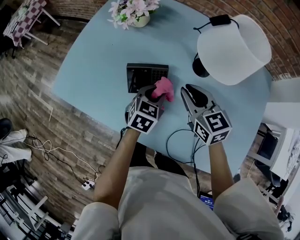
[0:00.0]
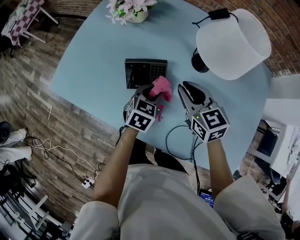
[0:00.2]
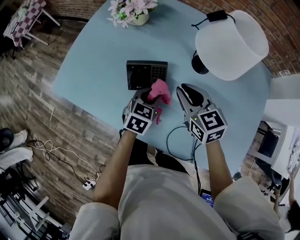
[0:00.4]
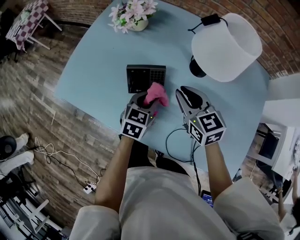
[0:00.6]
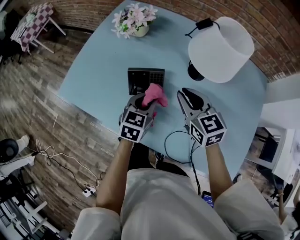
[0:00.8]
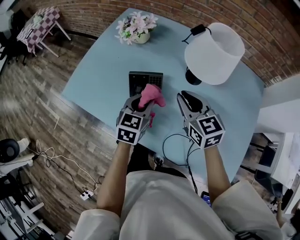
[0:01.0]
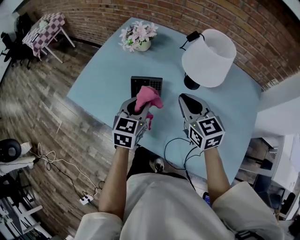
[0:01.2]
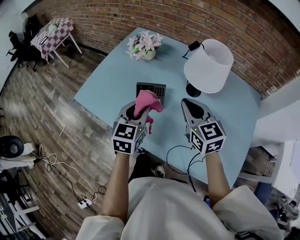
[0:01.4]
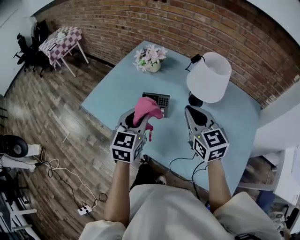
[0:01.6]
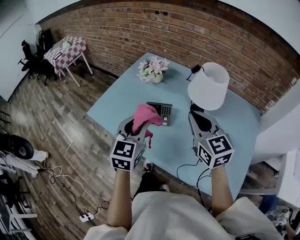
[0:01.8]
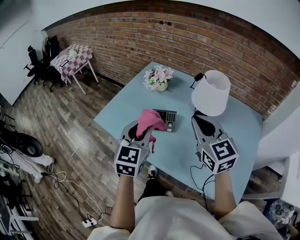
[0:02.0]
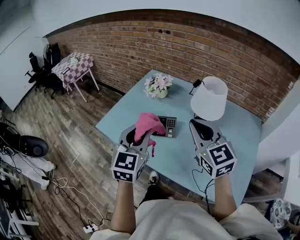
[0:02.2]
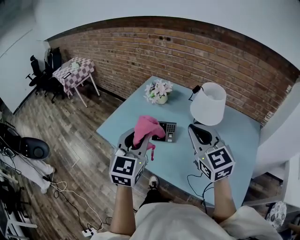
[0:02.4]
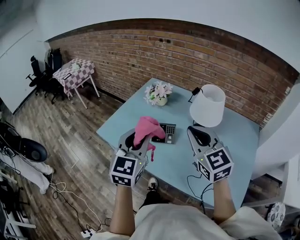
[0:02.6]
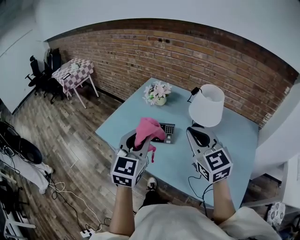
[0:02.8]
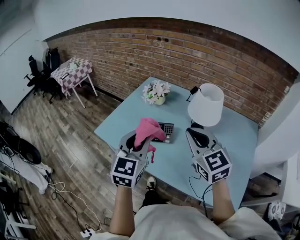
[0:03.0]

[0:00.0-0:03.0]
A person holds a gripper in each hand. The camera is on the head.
0:00.0 to 0:01.6: The two grippers go approximately 20 cm upward and backward. The left gripper changes its angle by approximately 30 degrees.
0:01.6 to 0:03.0: Both grippers move upward and backward, approximately 10 cm.

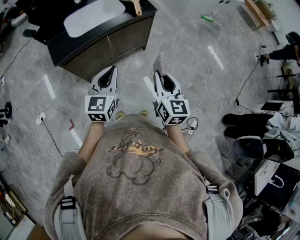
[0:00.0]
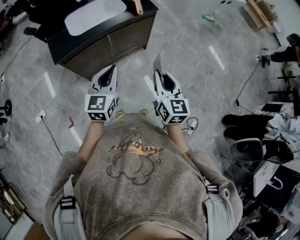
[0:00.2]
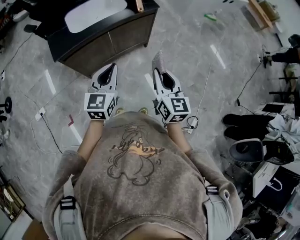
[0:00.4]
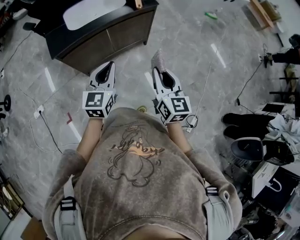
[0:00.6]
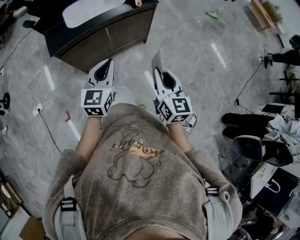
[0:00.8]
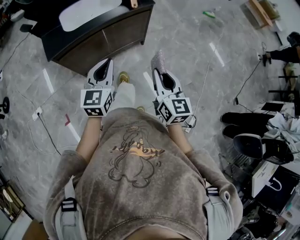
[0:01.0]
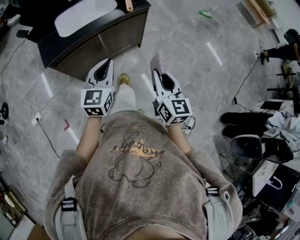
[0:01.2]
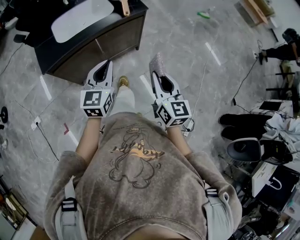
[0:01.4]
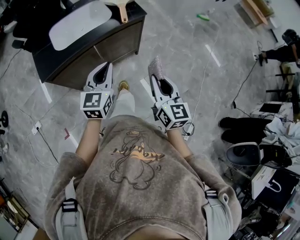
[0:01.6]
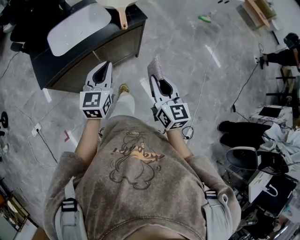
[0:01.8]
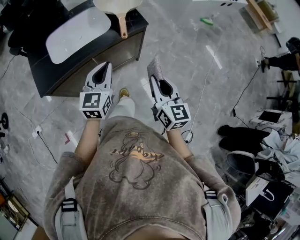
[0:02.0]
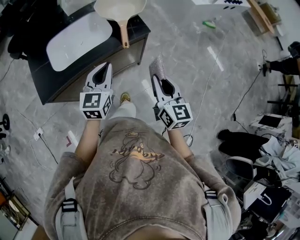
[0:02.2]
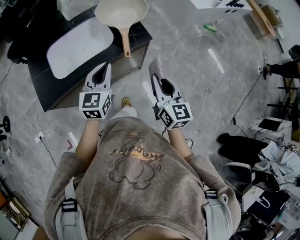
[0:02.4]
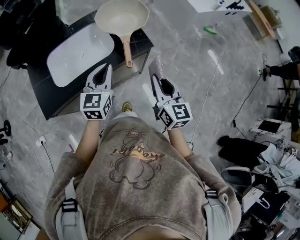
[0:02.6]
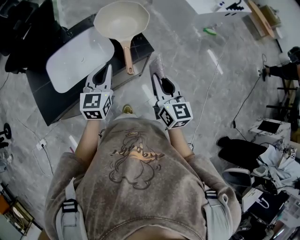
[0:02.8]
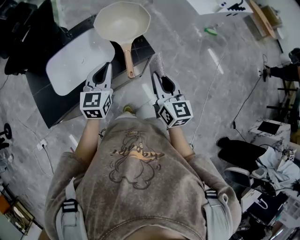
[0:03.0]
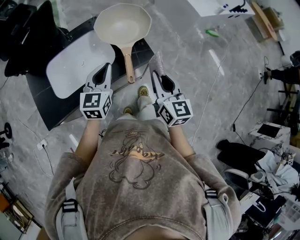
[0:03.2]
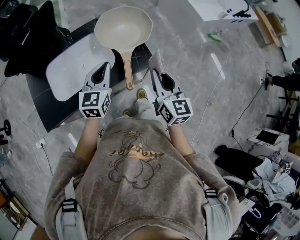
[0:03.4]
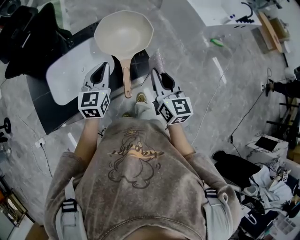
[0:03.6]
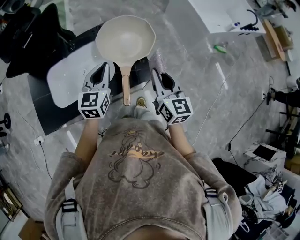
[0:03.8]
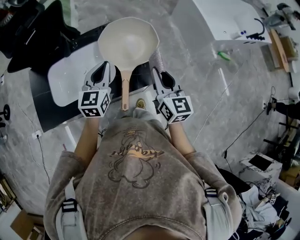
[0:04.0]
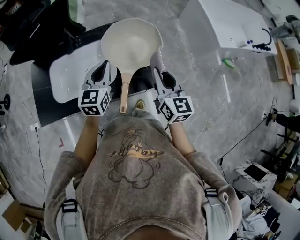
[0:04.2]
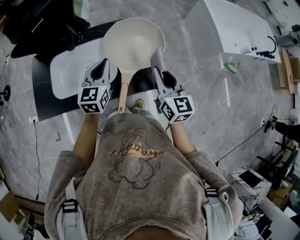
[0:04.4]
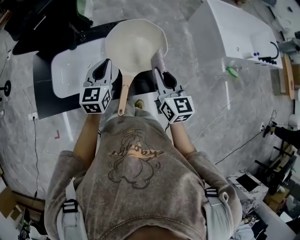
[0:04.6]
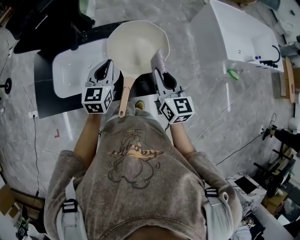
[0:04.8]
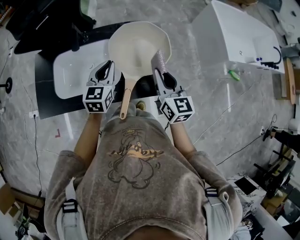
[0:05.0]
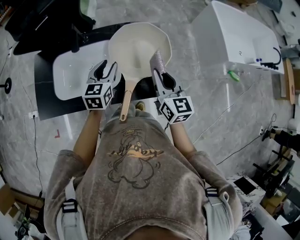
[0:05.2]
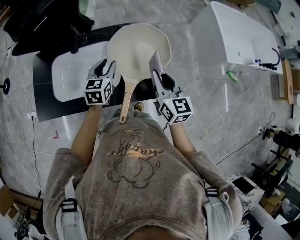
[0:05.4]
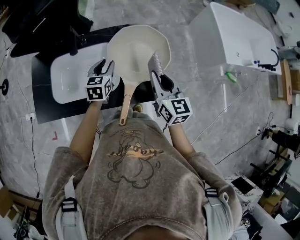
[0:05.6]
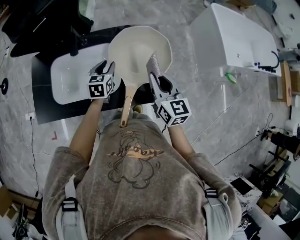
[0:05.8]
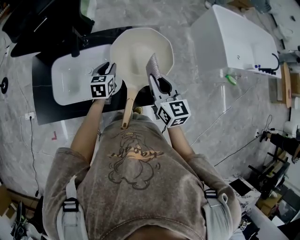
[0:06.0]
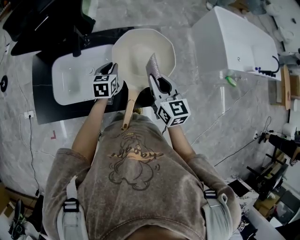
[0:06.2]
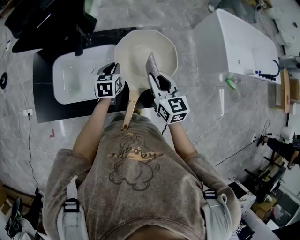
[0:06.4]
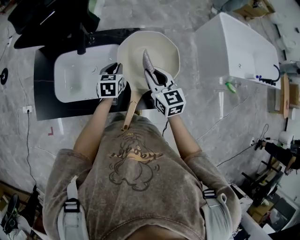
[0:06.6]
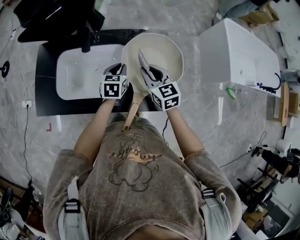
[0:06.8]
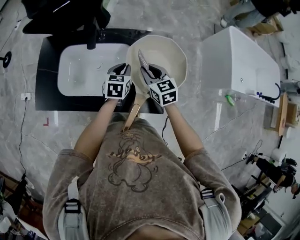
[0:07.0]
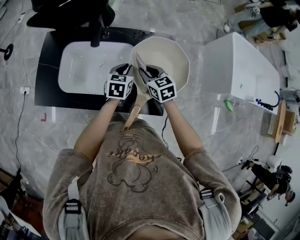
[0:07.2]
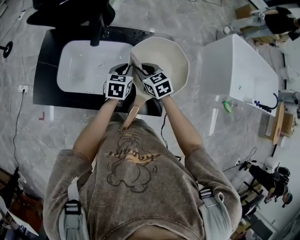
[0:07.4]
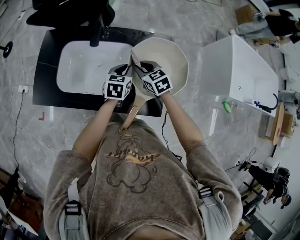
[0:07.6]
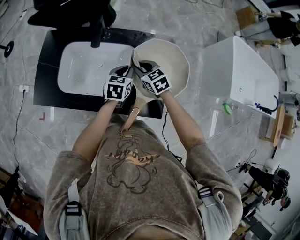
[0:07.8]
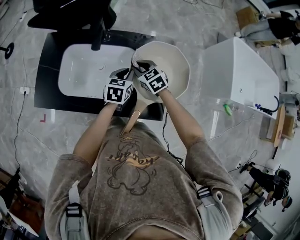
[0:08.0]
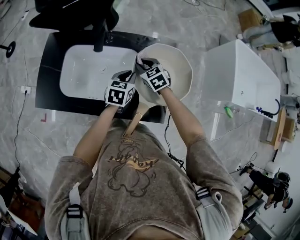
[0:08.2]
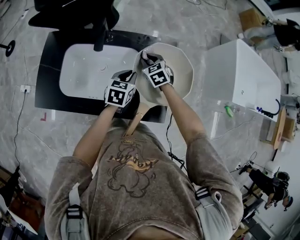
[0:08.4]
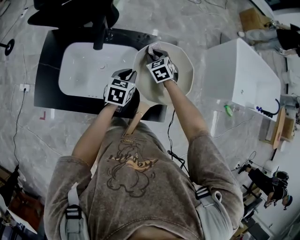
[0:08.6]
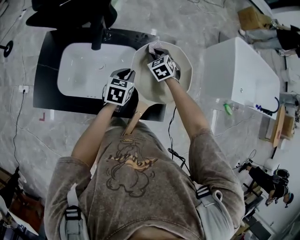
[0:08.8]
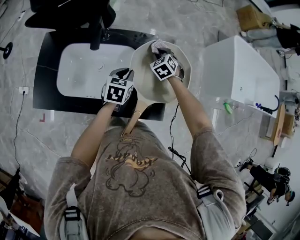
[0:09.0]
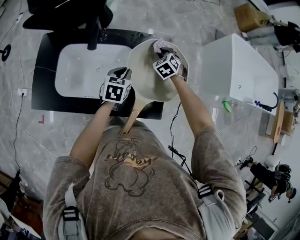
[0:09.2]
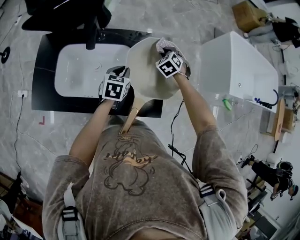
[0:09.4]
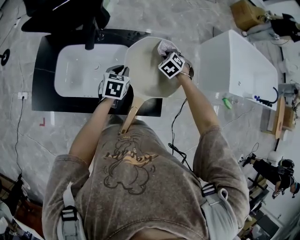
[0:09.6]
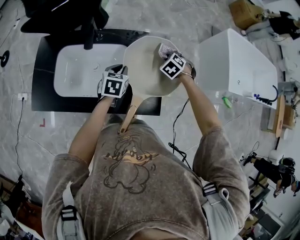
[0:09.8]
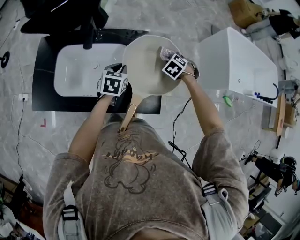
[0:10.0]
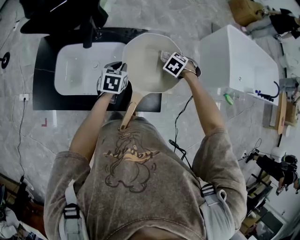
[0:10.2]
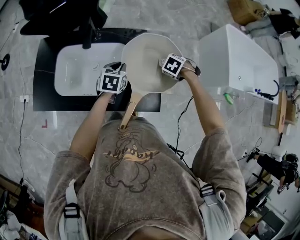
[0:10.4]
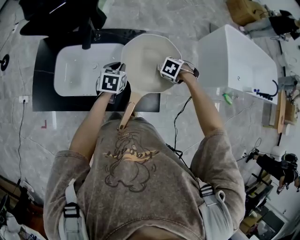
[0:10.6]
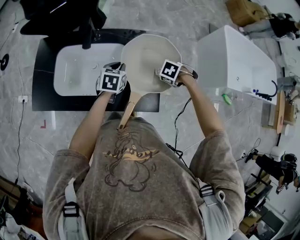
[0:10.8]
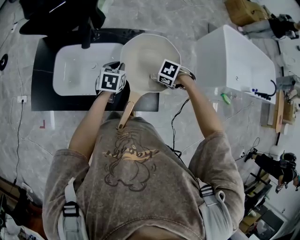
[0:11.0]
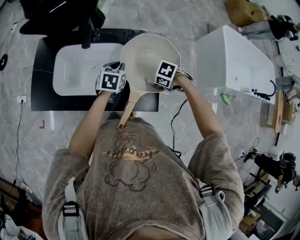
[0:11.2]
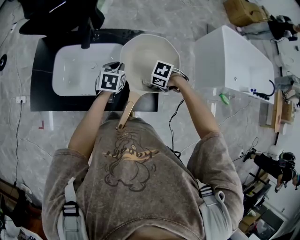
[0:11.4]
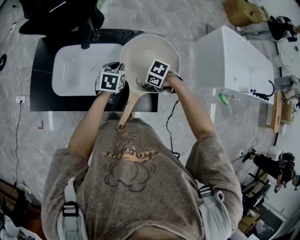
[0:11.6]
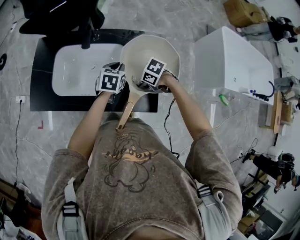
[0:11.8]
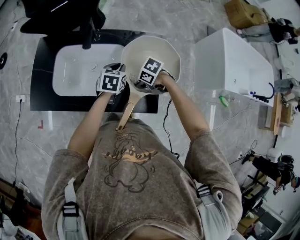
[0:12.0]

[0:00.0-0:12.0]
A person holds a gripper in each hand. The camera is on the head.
0:00.0 to 0:01.6: The right gripper goes some 5 cm forward. The left gripper moves forward, about 10 cm.
0:01.6 to 0:03.0: The grippers both shift forward by approximately 30 cm.
0:03.0 to 0:04.4: The two grippers go roughly 20 cm forward. The right gripper changes its angle by roughly 20 degrees; the left gripper rotates about 20 degrees.
0:04.4 to 0:06.0: The left gripper is displaced downward and forward by some 15 cm, turns by approximately 20 degrees, and opens. Meanwhile the right gripper travels forward by approximately 5 cm.
0:06.0 to 0:07.6: The right gripper goes approximately 20 cm downward, forward and to the left, and rotates some 50 degrees.
0:07.6 to 0:09.0: The right gripper shifts about 15 cm forward and to the right, and swivels about 30 degrees.
0:09.0 to 0:10.4: The right gripper shifts by some 15 cm, and points its fingers approximately 40 degrees further downward.
0:10.4 to 0:12.0: The right gripper changes place by about 15 cm, and swivels about 30 degrees.

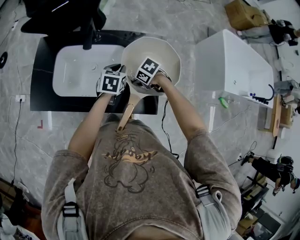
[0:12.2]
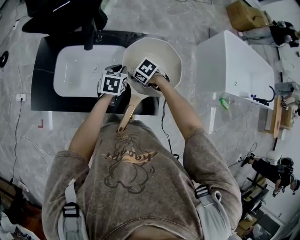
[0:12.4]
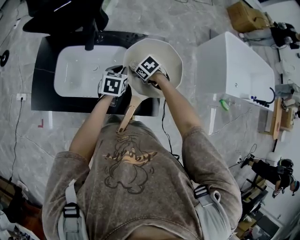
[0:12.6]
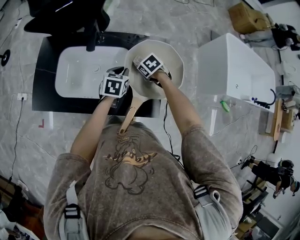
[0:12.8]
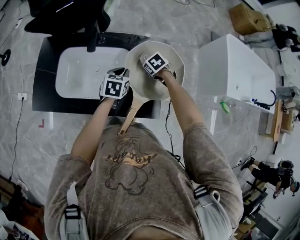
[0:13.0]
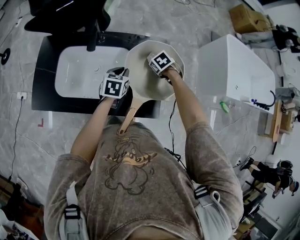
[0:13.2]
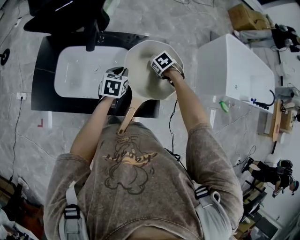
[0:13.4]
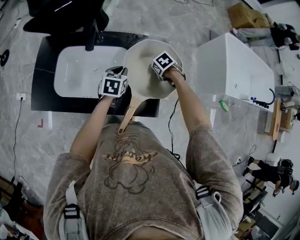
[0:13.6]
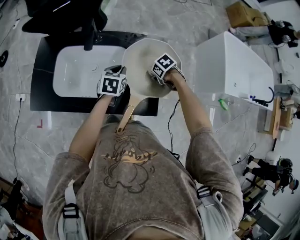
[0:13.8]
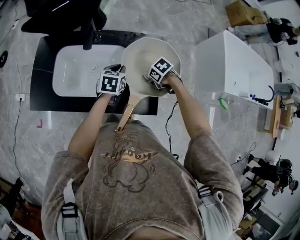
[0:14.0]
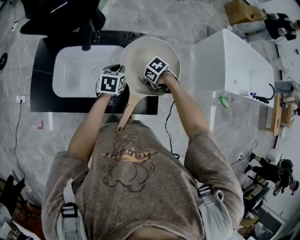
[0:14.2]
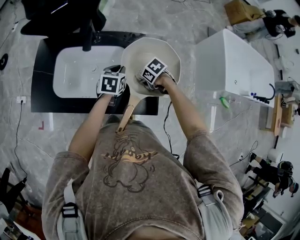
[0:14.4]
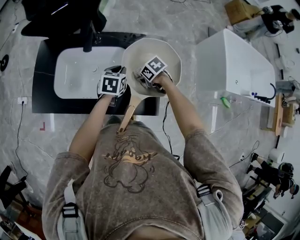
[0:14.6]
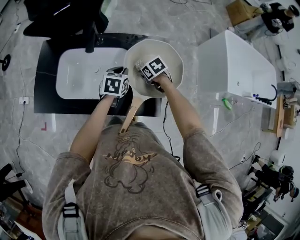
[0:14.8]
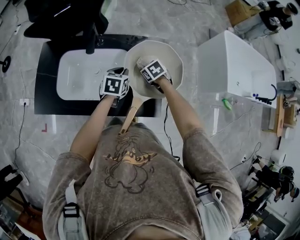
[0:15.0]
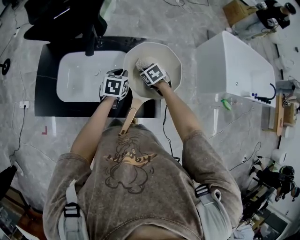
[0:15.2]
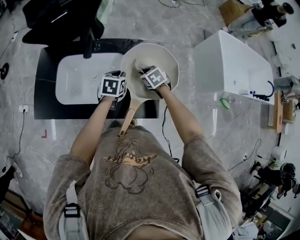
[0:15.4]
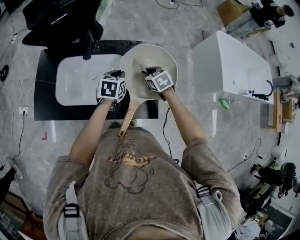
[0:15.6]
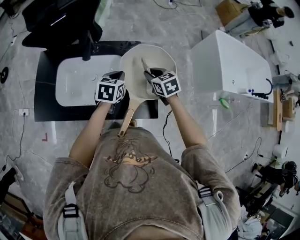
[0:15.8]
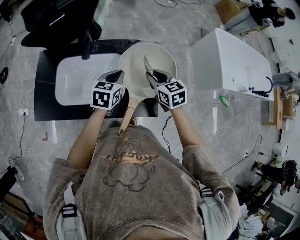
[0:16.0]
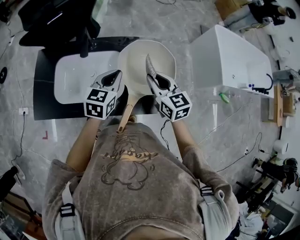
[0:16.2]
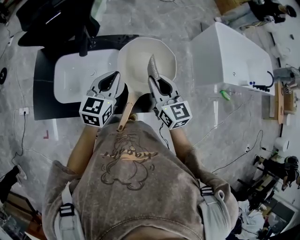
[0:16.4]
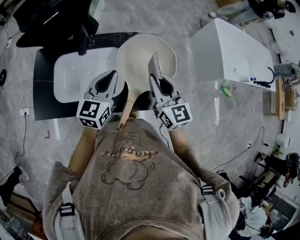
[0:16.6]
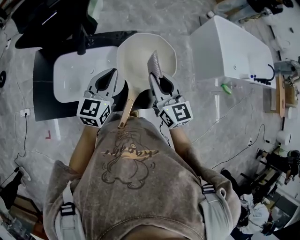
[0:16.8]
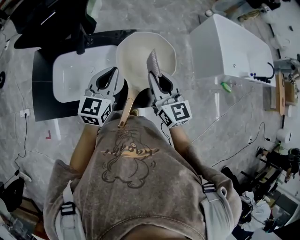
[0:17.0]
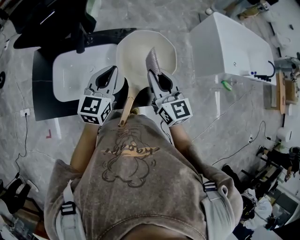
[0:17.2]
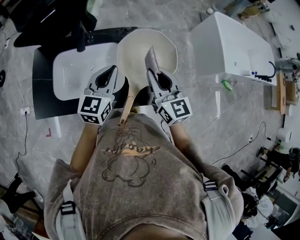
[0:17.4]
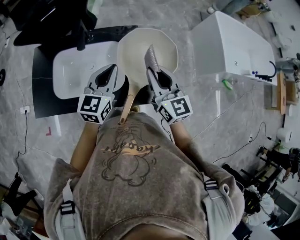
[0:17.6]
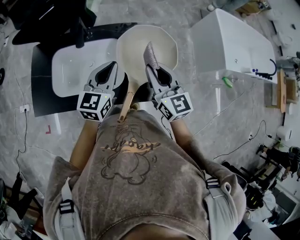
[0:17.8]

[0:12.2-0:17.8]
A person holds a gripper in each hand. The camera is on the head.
0:12.2 to 0:13.6: The right gripper shifts by about 15 cm, and swivels approximately 30 degrees.
0:13.6 to 0:15.0: The right gripper shifts by about 10 cm.
0:15.0 to 0:16.4: The left gripper shifts about 15 cm upward and backward, and swivels some 30 degrees; the right gripper heads upward and backward, covering some 25 cm, and angles its fingers upward, by about 50 degrees.
0:16.4 to 0:17.8: There are only small adjustments of the grippers.

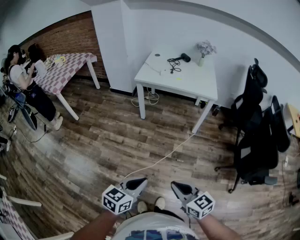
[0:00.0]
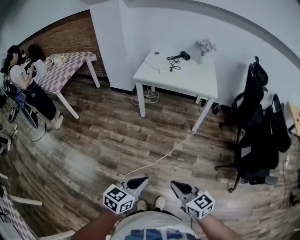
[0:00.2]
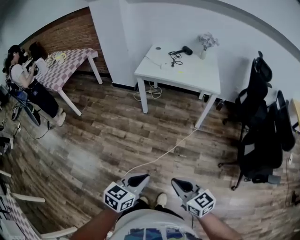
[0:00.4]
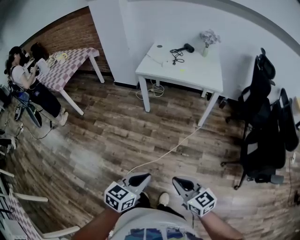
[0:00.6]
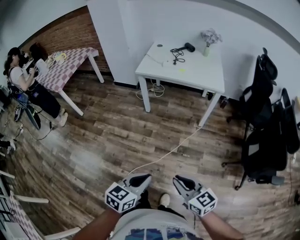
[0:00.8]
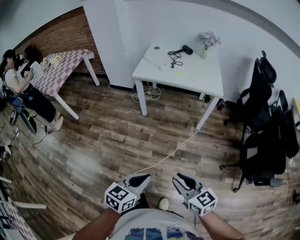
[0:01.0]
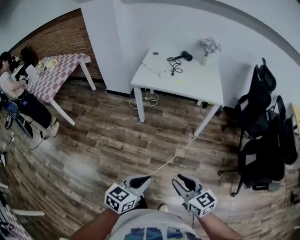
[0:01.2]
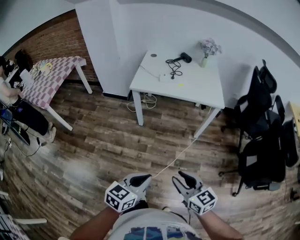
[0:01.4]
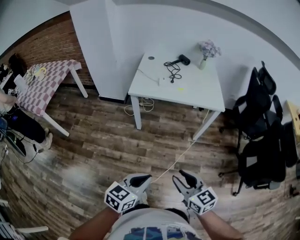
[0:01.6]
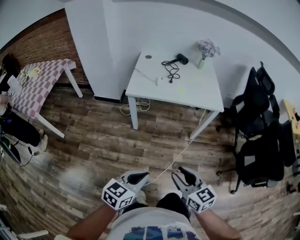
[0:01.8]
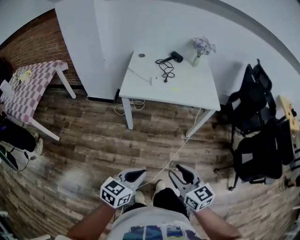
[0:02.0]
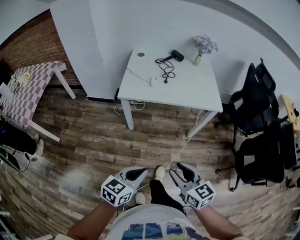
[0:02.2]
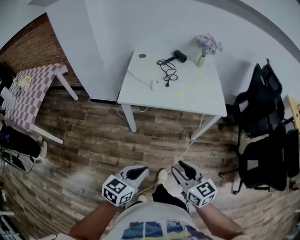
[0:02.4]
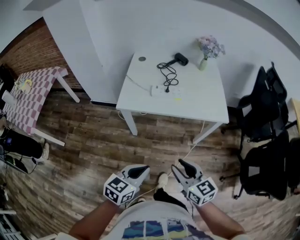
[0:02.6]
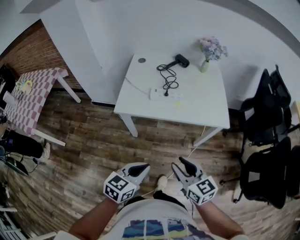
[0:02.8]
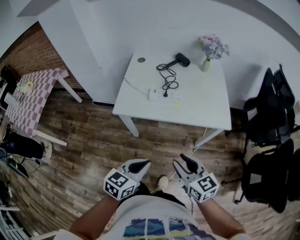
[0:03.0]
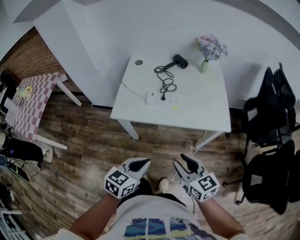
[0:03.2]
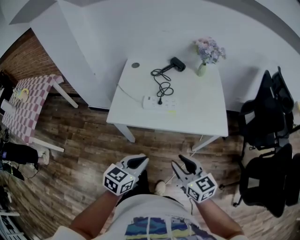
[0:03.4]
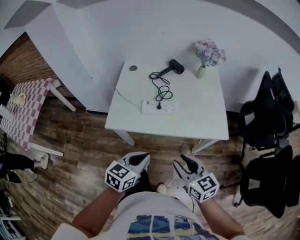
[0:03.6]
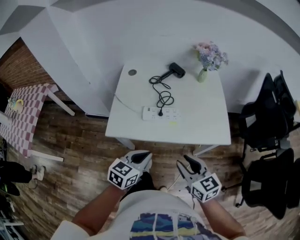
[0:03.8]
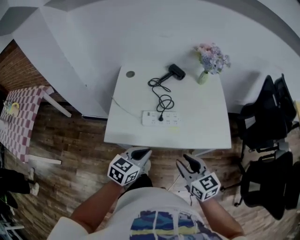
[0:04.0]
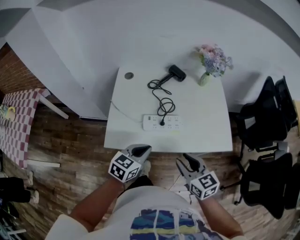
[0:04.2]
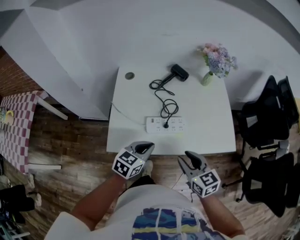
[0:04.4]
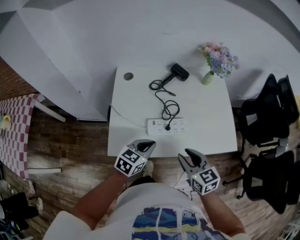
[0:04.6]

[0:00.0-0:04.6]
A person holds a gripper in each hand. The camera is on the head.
0:00.0 to 0:01.6: The two grippers go some 25 cm forward. The right gripper opens.
0:01.6 to 0:03.0: Both grippers move forward, some 35 cm.
0:03.0 to 0:04.6: The two grippers go roughly 30 cm forward.
